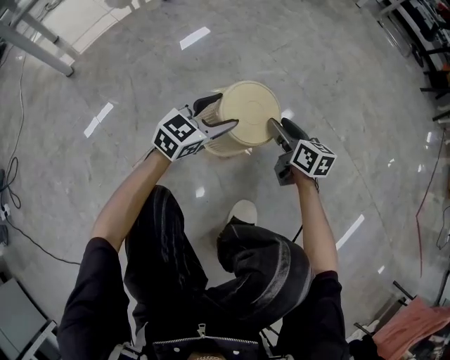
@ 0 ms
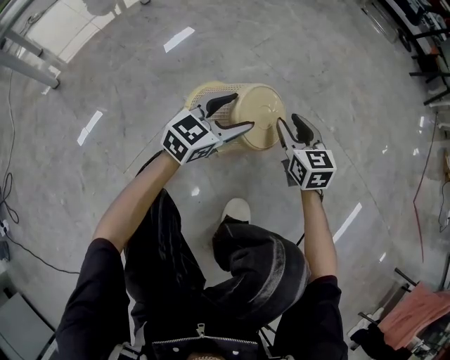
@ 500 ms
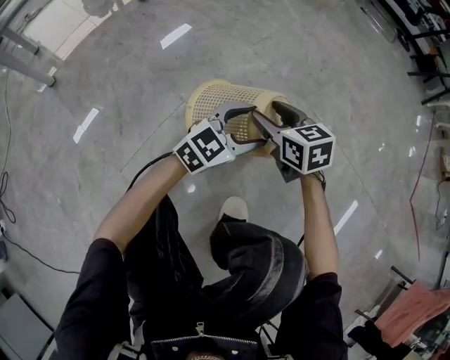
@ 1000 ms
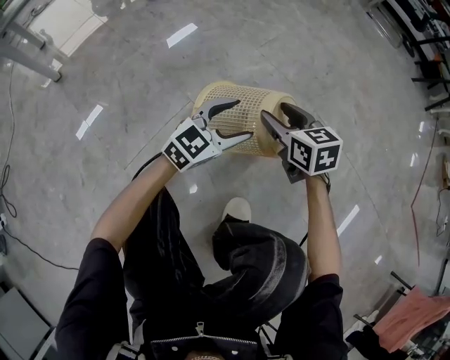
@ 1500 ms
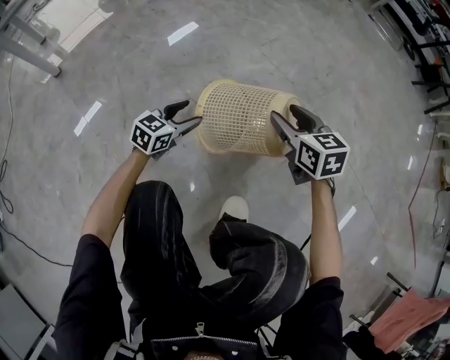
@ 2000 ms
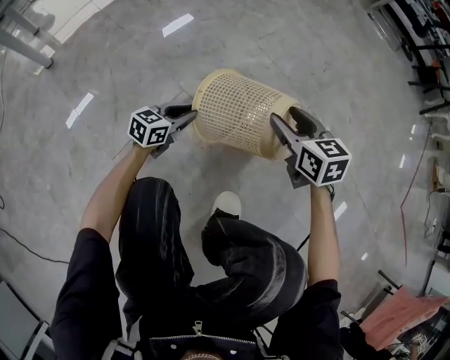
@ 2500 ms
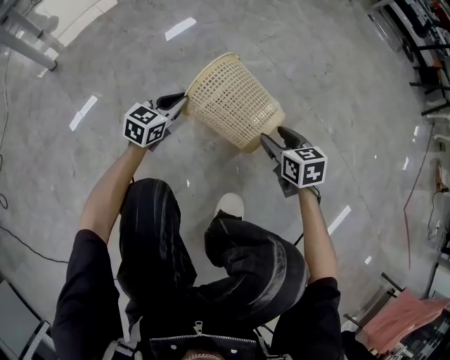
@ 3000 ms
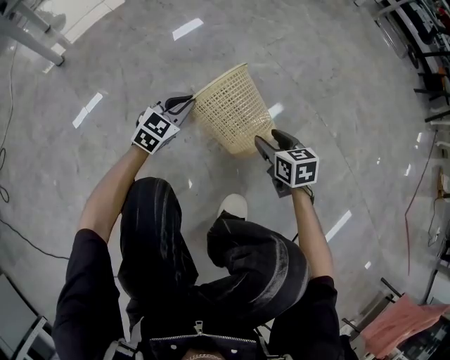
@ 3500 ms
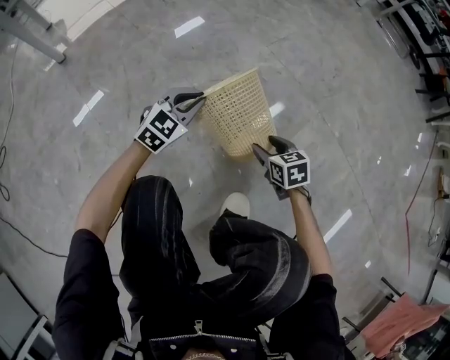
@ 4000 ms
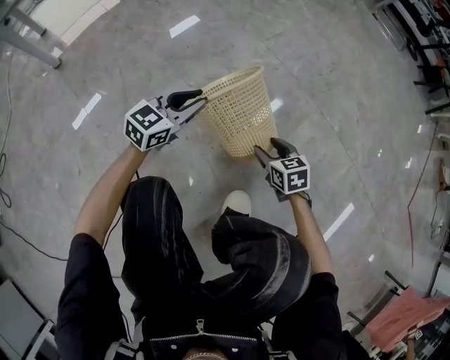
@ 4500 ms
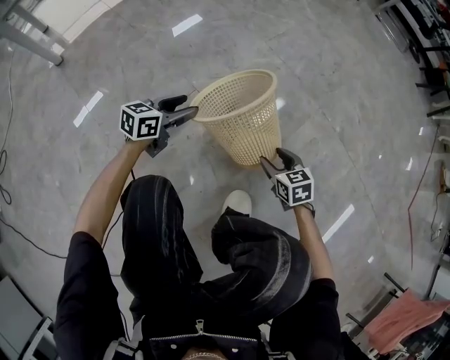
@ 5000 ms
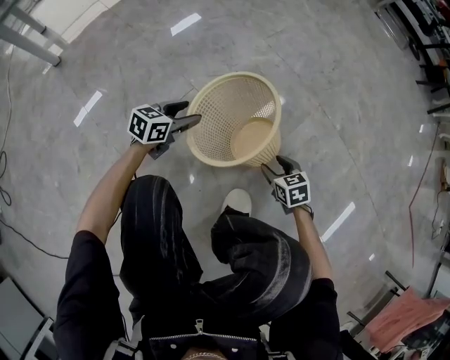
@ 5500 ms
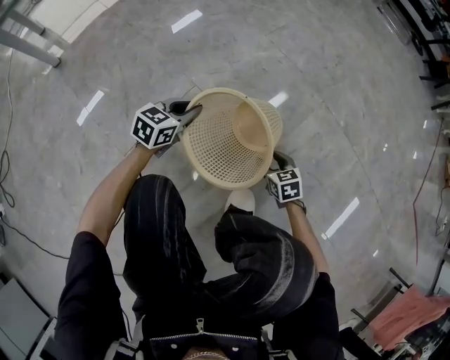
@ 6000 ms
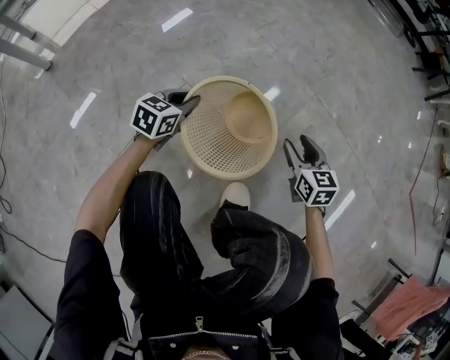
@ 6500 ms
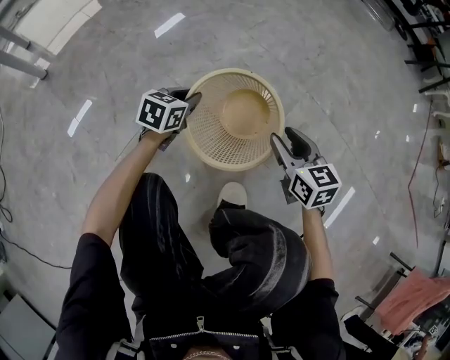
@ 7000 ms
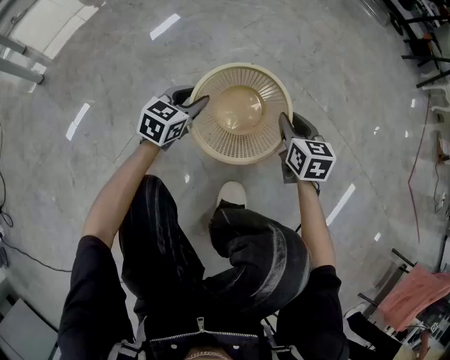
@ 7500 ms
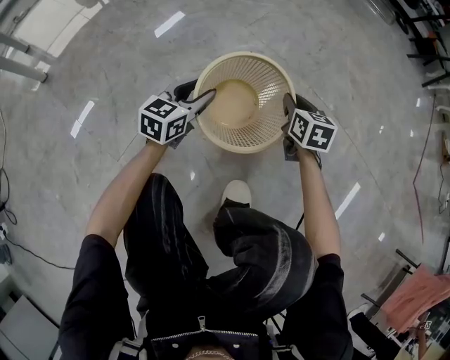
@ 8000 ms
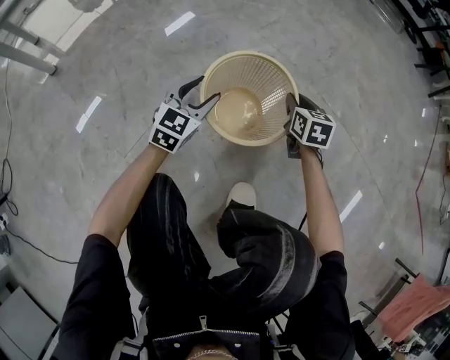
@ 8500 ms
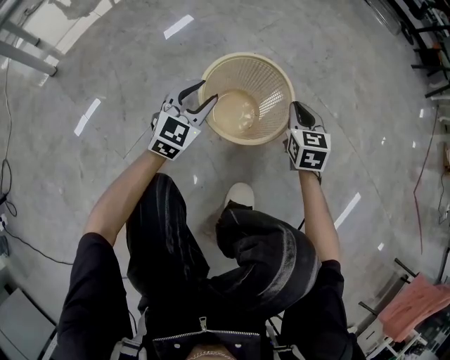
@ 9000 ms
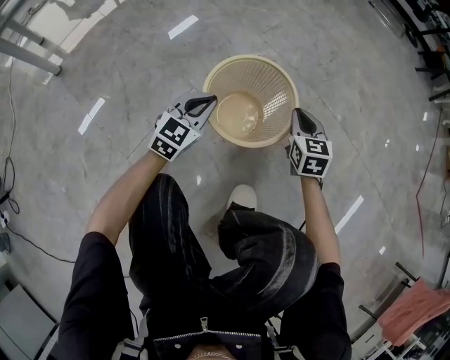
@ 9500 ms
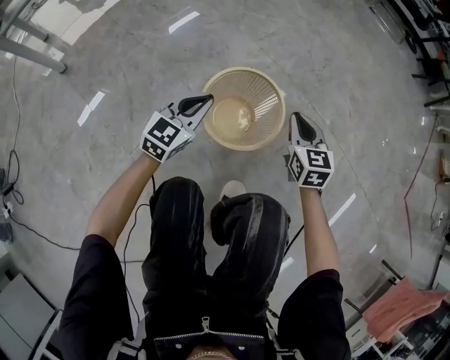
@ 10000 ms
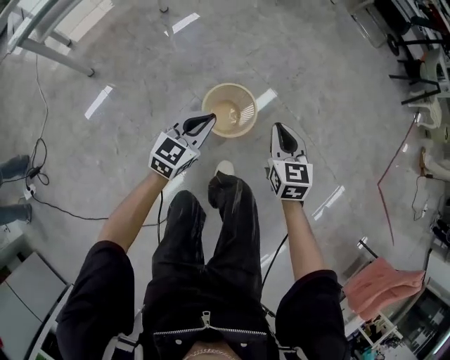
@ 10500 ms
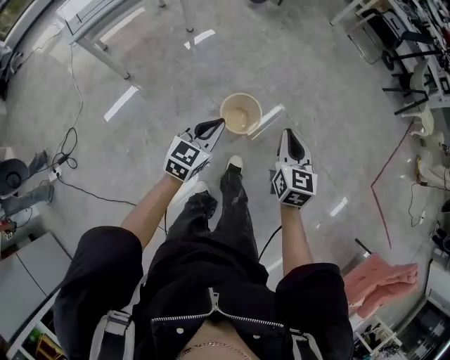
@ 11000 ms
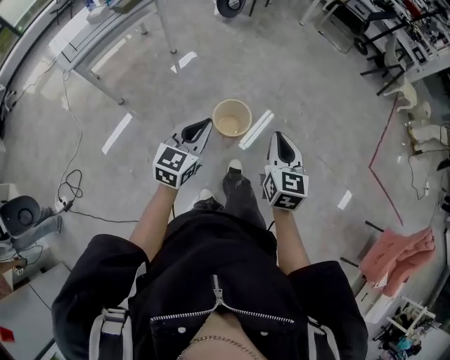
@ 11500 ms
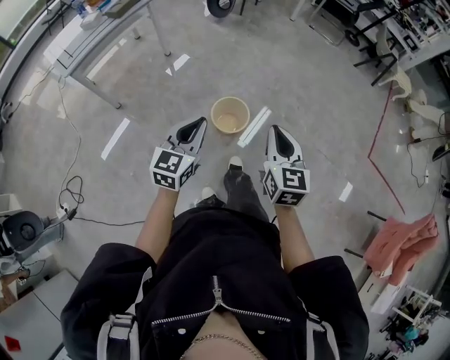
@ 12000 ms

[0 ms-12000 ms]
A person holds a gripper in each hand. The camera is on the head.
0 ms to 2000 ms: The right gripper is displaced upward by some 10 cm, and changes its angle by some 30 degrees. The left gripper goes some 10 cm downward, and travels to the right and back again, some 15 cm each way.
2000 ms to 4000 ms: The left gripper shifts some 5 cm upward, swivels approximately 20 degrees, and closes its fingers. Meanwhile the right gripper is displaced downward and backward by roughly 15 cm.
4000 ms to 6000 ms: The left gripper shifts approximately 5 cm downward, turns by roughly 30 degrees, and opens, then closes once more; the right gripper heads downward and backward, covering about 10 cm.
6000 ms to 8000 ms: The right gripper moves forward and upward, some 20 cm, swivels roughly 30 degrees, and closes. Meanwhile the left gripper goes approximately 10 cm upward and to the right, and opens its fingers.
8000 ms to 10000 ms: The grippers both shift upward by about 10 cm. The left gripper closes its fingers.
10000 ms to 12000 ms: Both grippers move upward and backward, about 70 cm.

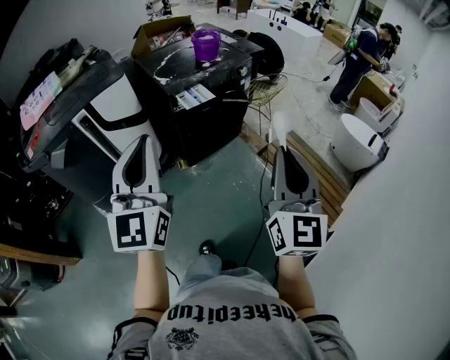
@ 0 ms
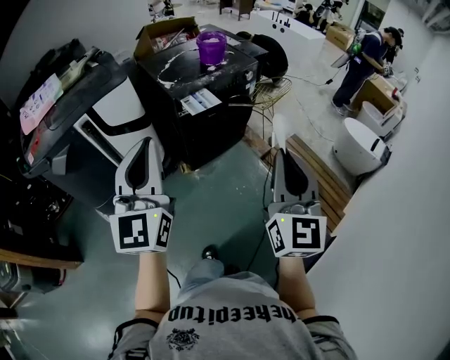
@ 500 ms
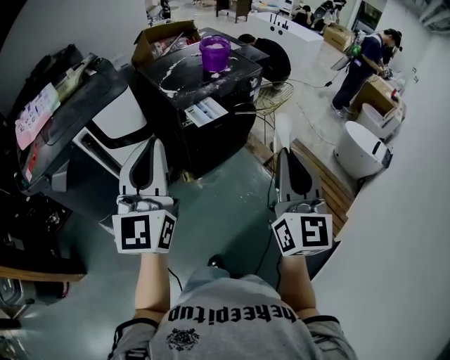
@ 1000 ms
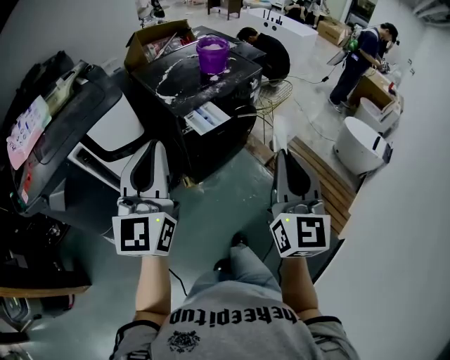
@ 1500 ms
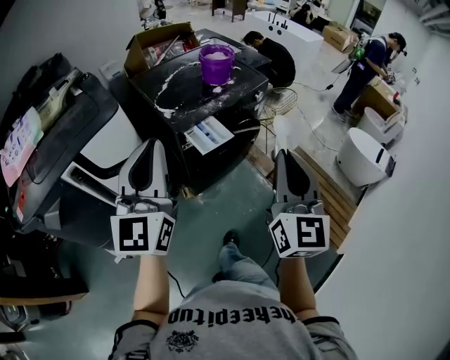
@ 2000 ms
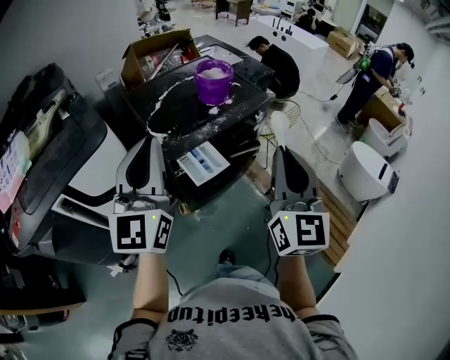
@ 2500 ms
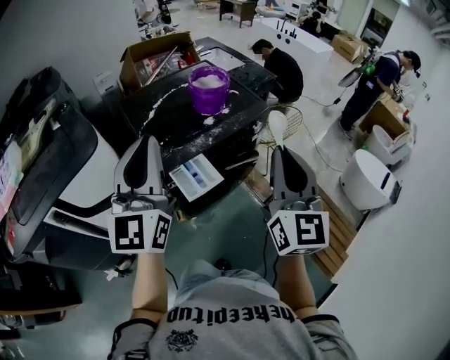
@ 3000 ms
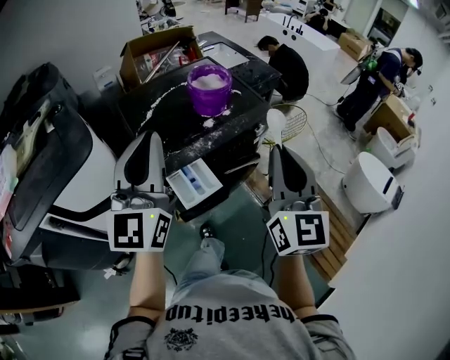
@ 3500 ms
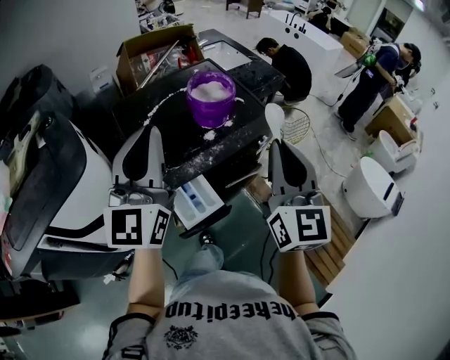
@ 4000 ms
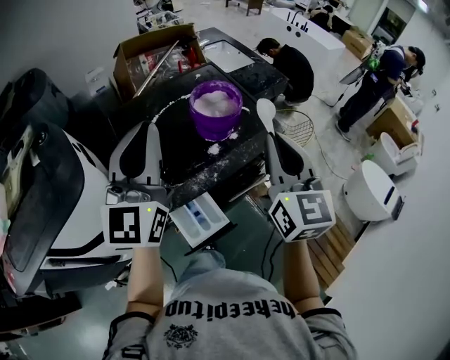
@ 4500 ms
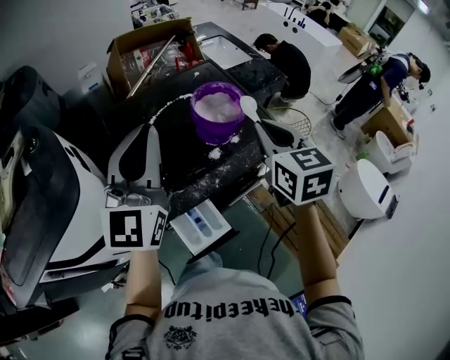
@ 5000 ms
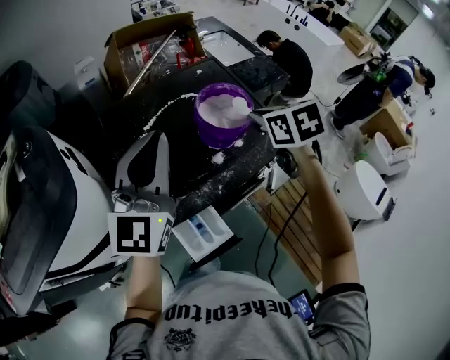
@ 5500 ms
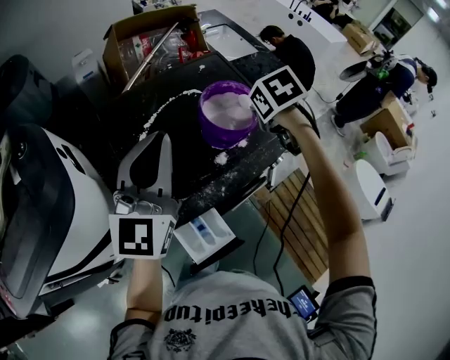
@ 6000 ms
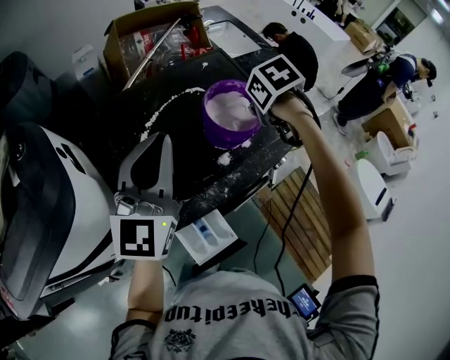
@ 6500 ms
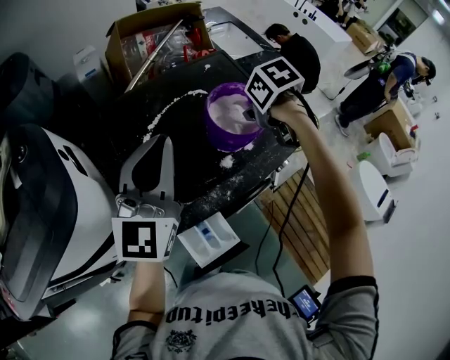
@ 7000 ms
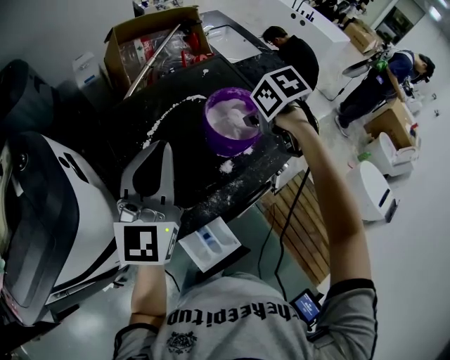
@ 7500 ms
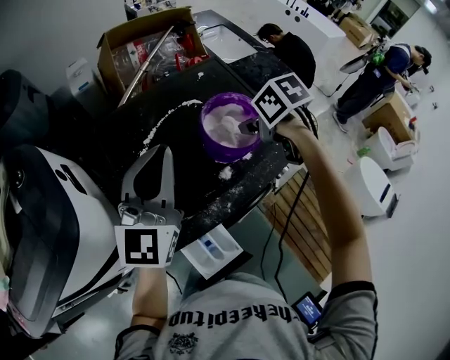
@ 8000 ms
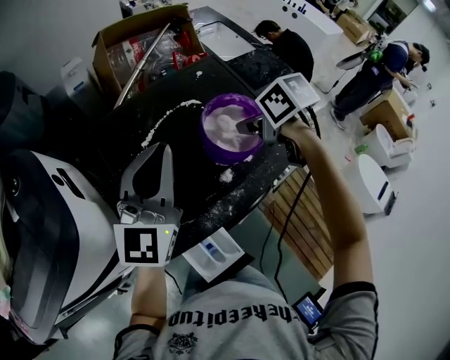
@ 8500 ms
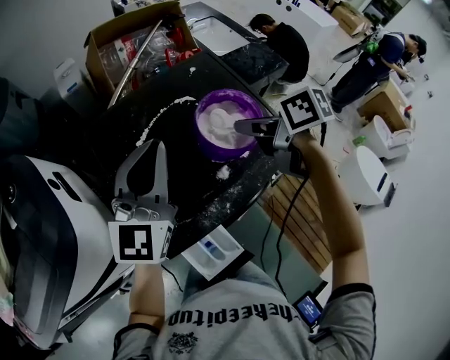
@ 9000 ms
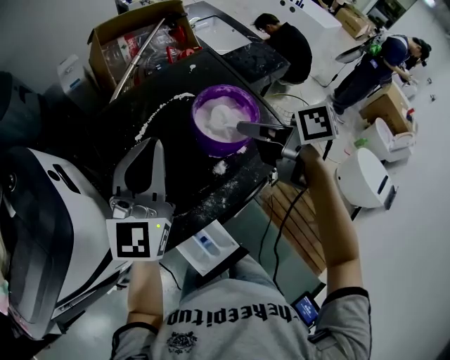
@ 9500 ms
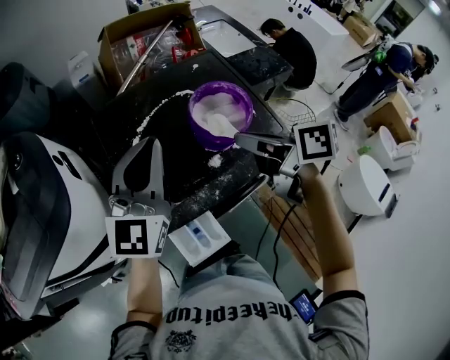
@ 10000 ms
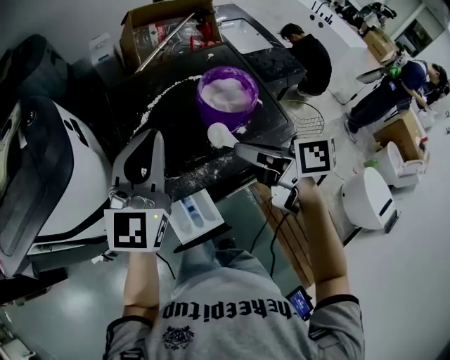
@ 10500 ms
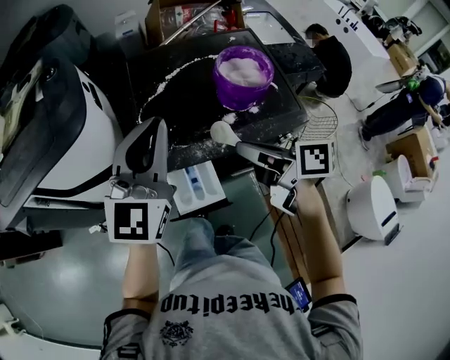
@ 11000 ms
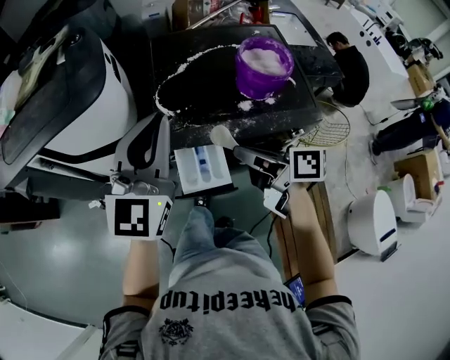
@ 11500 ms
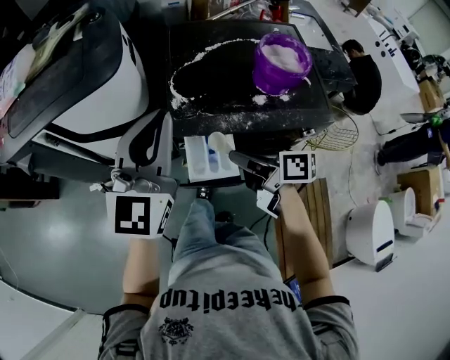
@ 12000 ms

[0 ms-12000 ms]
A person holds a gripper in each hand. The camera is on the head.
0 ms to 2000 ms: Both grippers travel together forward, roughly 25 cm.
2000 ms to 4000 ms: Both grippers travel together forward, roughly 35 cm.
4000 ms to 6000 ms: The left gripper goes about 20 cm forward and downward; the right gripper travels forward and downward by roughly 35 cm, and angles its fingers downward, by approximately 70 degrees.
6000 ms to 8000 ms: The left gripper changes place by some 5 cm; the right gripper changes its angle by approximately 30 degrees.
8000 ms to 10000 ms: The right gripper shifts roughly 10 cm backward and upward, and tips its fingers upward by about 40 degrees.
10000 ms to 12000 ms: The right gripper travels to the left, backward and downward by approximately 25 cm, and changes its angle by approximately 20 degrees, while the left gripper travels backward and to the left by roughly 25 cm, and rotates roughly 20 degrees.

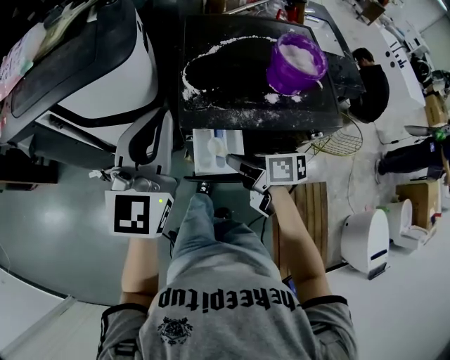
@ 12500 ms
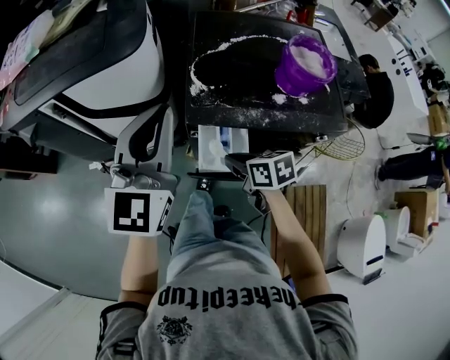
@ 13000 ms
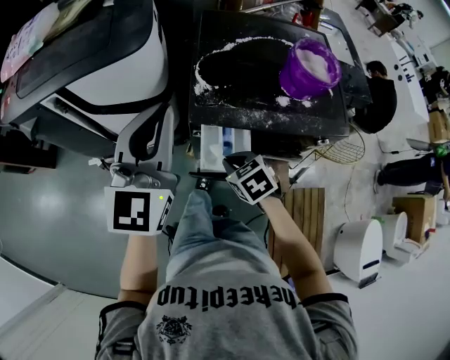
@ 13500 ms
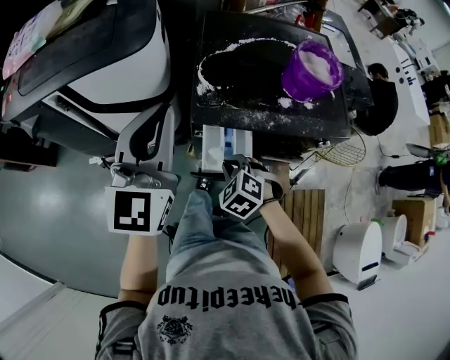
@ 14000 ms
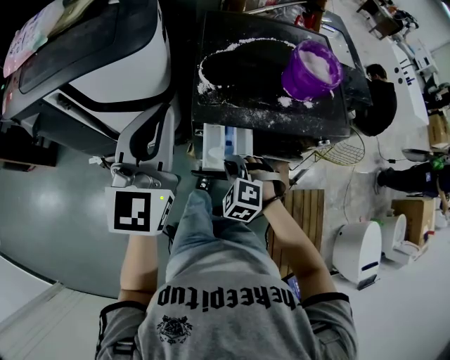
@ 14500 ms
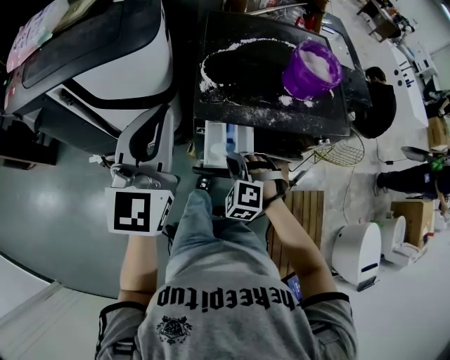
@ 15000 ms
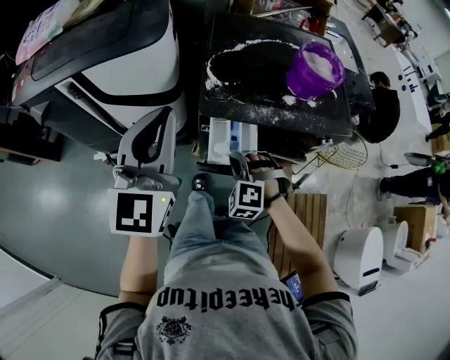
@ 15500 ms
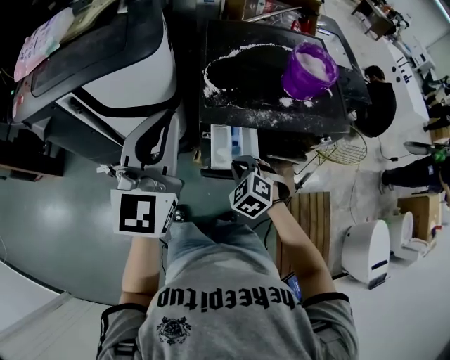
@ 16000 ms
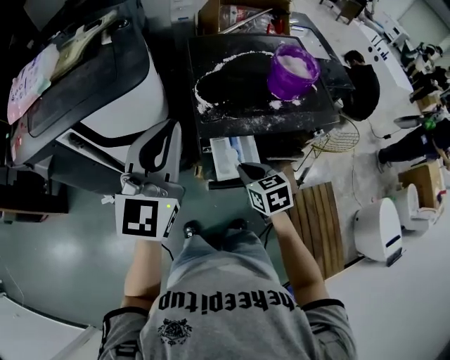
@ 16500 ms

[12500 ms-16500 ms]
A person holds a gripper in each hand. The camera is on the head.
12500 ms to 14500 ms: The right gripper is displaced downward by roughly 5 cm, and rotates around the line of its fingers by some 90 degrees, counterclockwise from behind.
14500 ms to 16500 ms: The right gripper is displaced upward by approximately 5 cm, and twists approximately 70 degrees clockwise, seen from behind.
